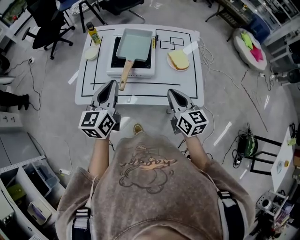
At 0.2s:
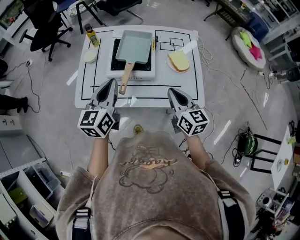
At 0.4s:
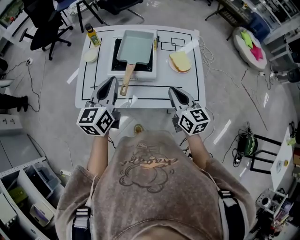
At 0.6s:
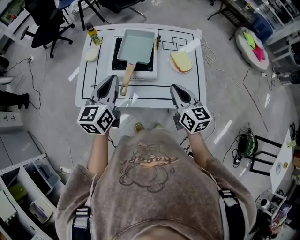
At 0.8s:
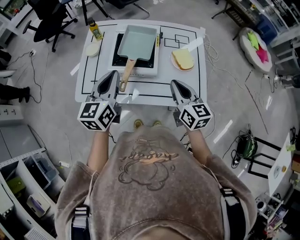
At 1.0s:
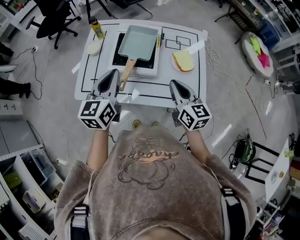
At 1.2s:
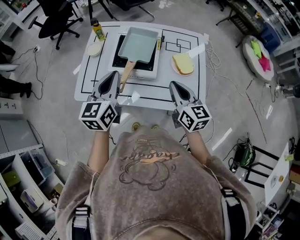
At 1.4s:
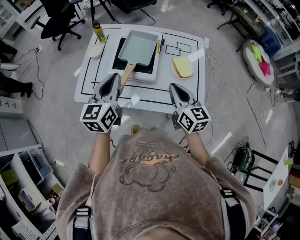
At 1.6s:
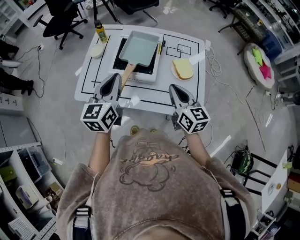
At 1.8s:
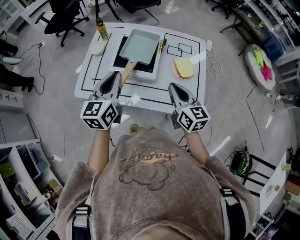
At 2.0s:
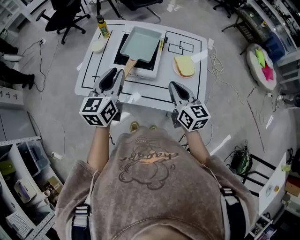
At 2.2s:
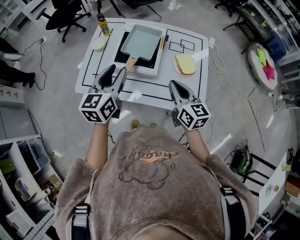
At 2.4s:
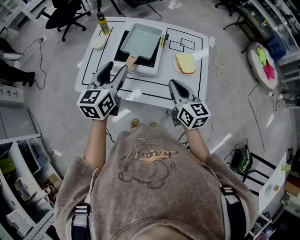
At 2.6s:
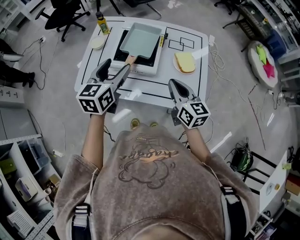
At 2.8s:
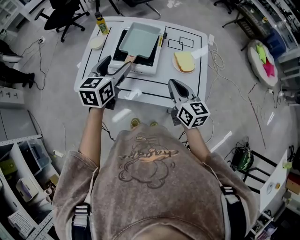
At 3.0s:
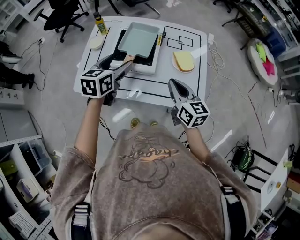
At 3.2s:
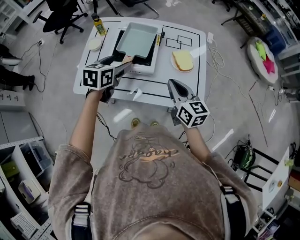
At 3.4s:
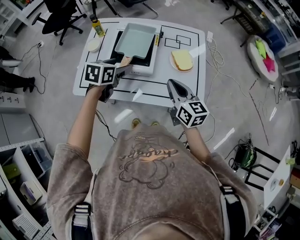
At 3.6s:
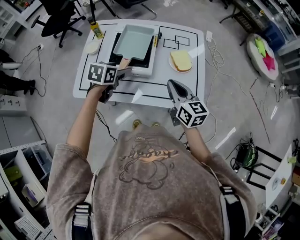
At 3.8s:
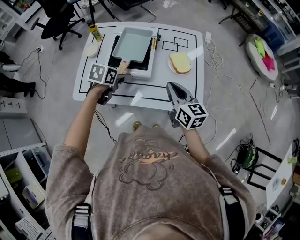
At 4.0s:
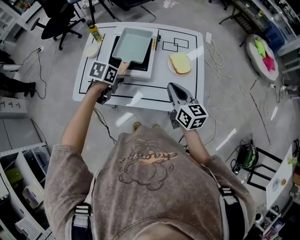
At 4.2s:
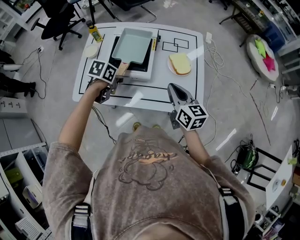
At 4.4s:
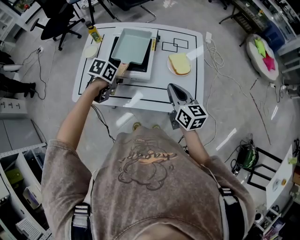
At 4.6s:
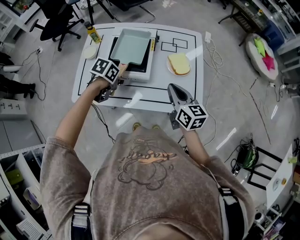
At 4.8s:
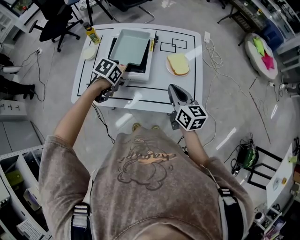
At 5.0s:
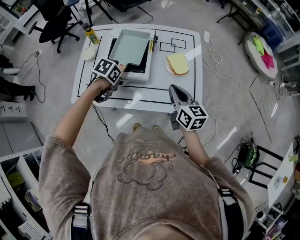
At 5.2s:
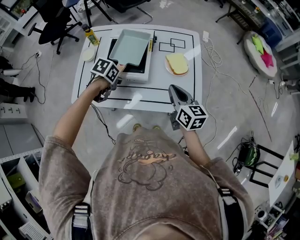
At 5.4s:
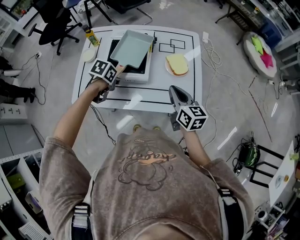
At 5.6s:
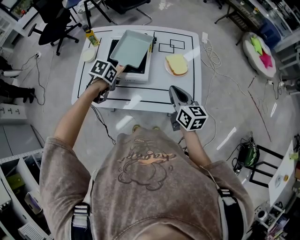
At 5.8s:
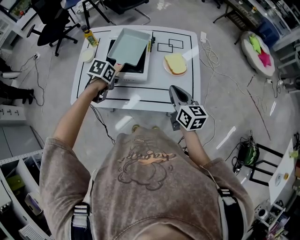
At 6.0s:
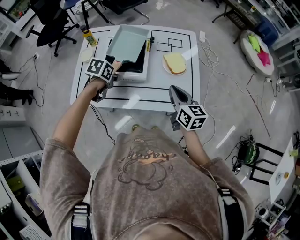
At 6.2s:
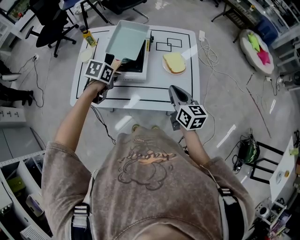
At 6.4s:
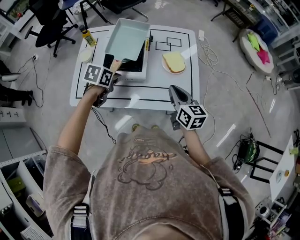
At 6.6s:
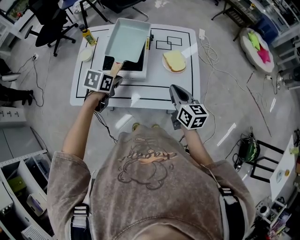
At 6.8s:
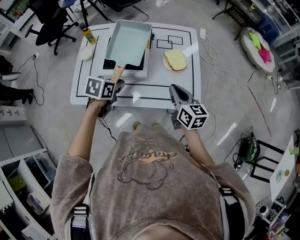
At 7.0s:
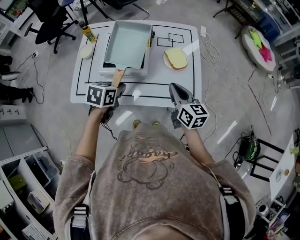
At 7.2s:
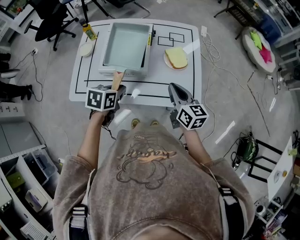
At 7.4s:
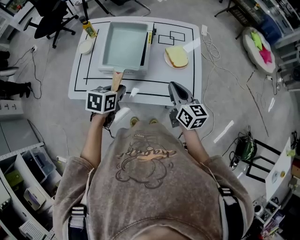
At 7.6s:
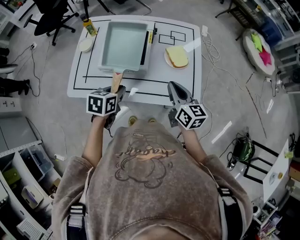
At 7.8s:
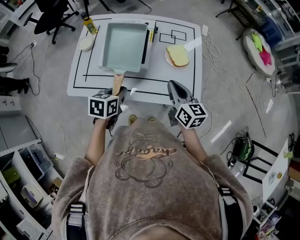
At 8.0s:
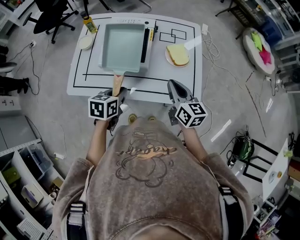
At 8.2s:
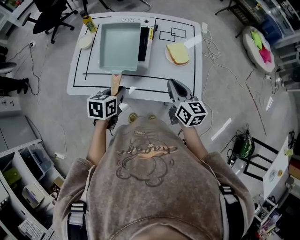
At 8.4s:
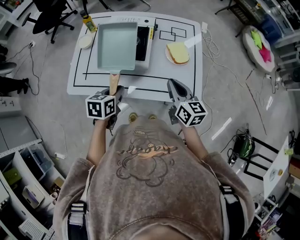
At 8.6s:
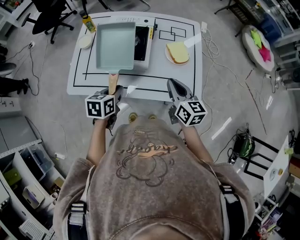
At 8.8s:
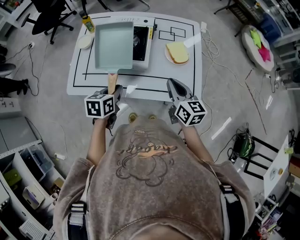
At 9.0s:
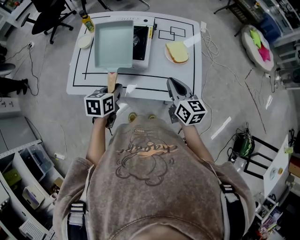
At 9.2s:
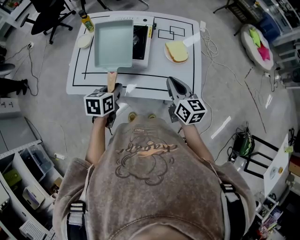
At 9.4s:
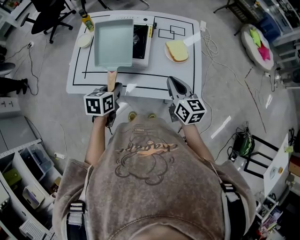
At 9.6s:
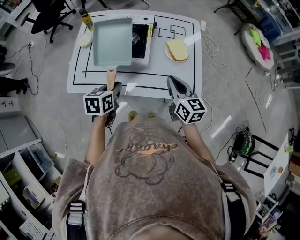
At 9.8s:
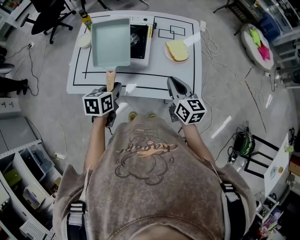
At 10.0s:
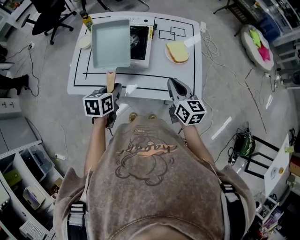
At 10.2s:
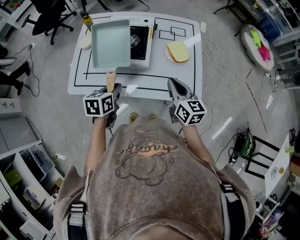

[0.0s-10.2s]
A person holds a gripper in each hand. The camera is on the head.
0.0s to 1.4s: The right gripper moves forward, about 5 cm.
1.4s to 3.0s: The left gripper ends up approximately 5 cm from where it was, turns by some 20 degrees, and opens.
3.0s to 4.4s: The left gripper heads downward, covering roughly 15 cm, and turns by approximately 40 degrees.
4.4s to 5.8s: The left gripper closes up.
5.8s to 7.2s: The left gripper travels backward by roughly 5 cm.
7.2s to 8.8s: The grippers move only a little.
8.8s to 10.2s: Both grippers stay put.

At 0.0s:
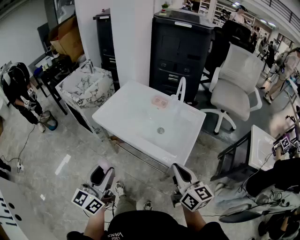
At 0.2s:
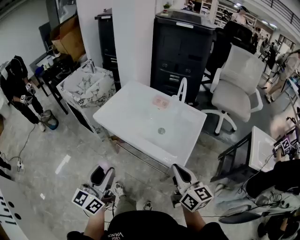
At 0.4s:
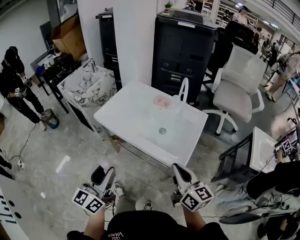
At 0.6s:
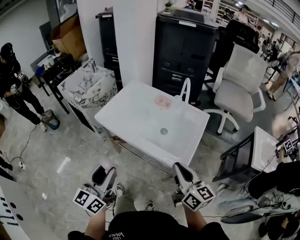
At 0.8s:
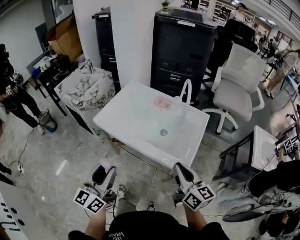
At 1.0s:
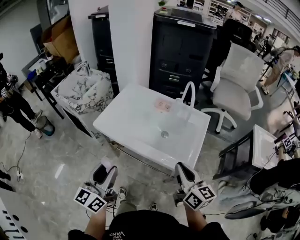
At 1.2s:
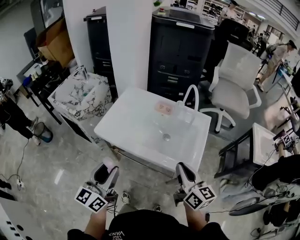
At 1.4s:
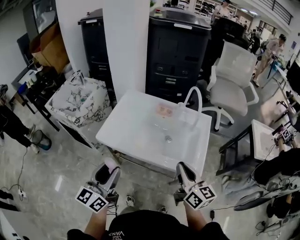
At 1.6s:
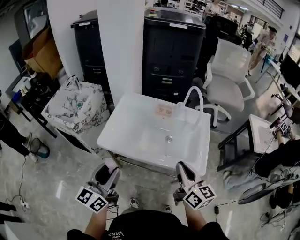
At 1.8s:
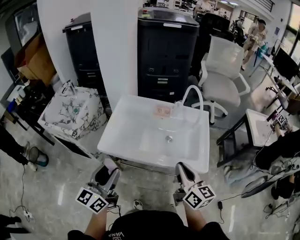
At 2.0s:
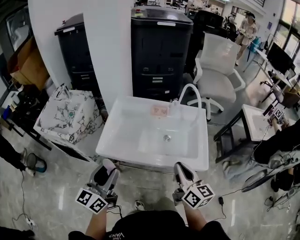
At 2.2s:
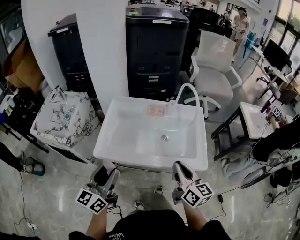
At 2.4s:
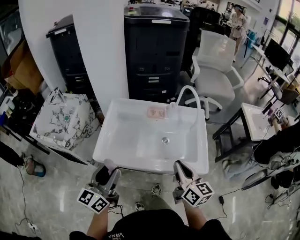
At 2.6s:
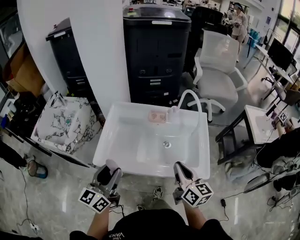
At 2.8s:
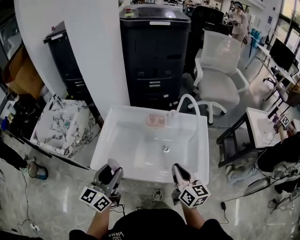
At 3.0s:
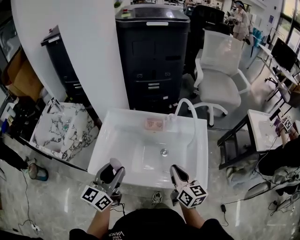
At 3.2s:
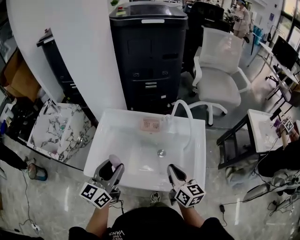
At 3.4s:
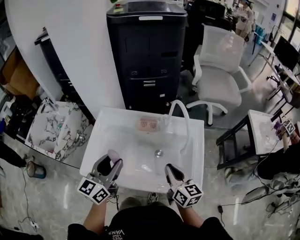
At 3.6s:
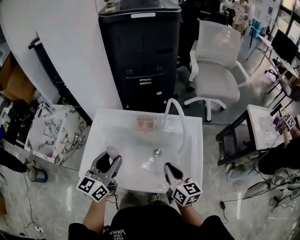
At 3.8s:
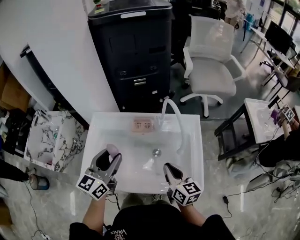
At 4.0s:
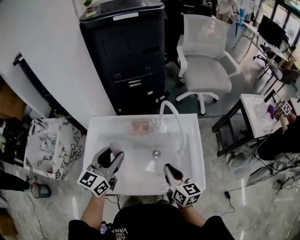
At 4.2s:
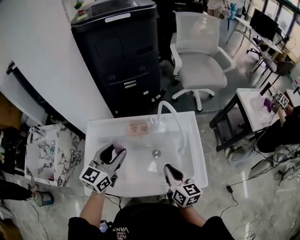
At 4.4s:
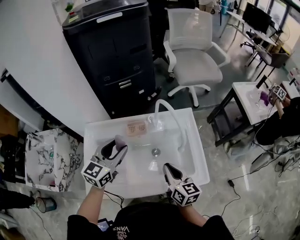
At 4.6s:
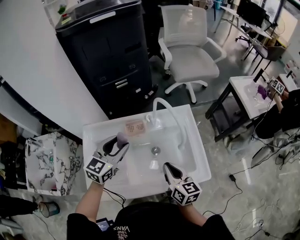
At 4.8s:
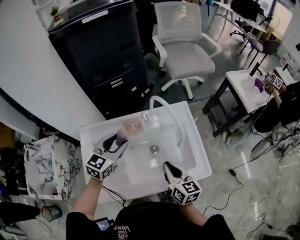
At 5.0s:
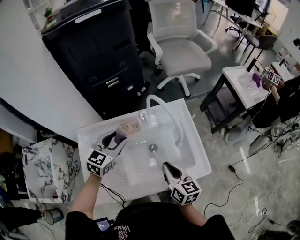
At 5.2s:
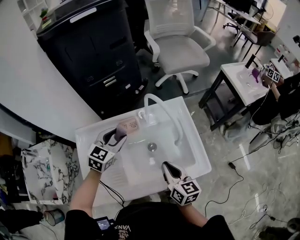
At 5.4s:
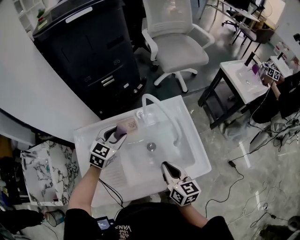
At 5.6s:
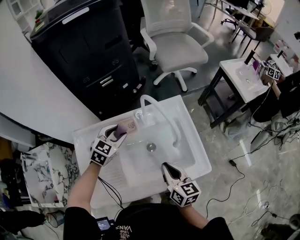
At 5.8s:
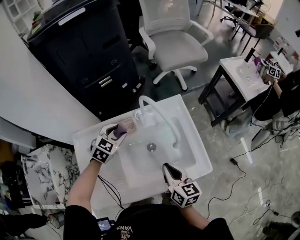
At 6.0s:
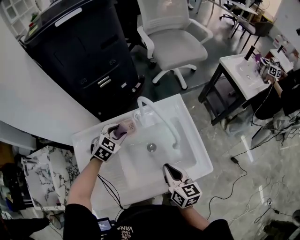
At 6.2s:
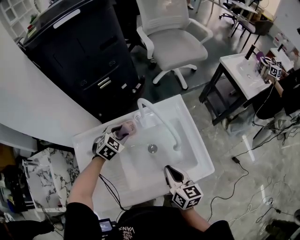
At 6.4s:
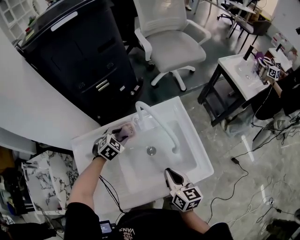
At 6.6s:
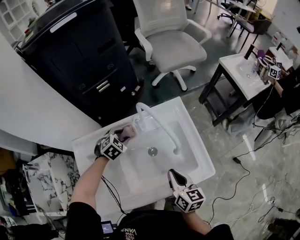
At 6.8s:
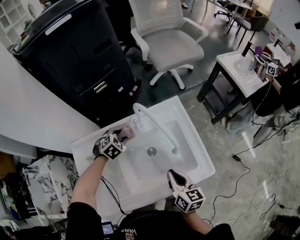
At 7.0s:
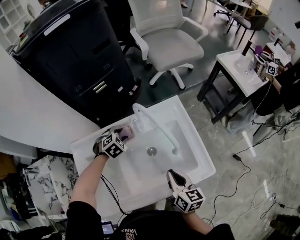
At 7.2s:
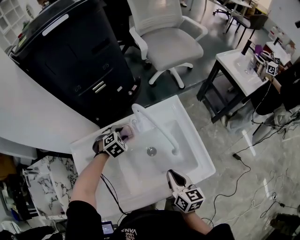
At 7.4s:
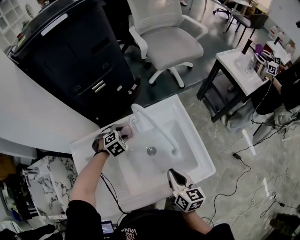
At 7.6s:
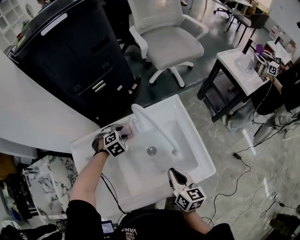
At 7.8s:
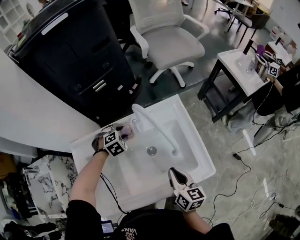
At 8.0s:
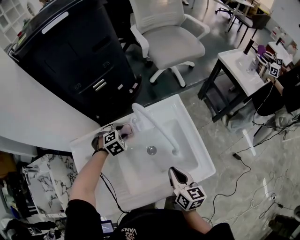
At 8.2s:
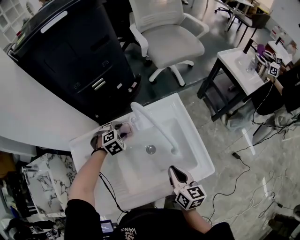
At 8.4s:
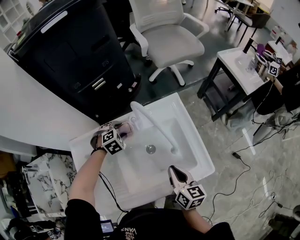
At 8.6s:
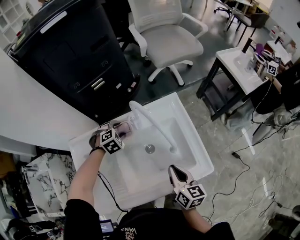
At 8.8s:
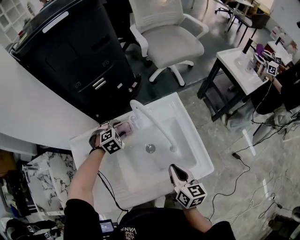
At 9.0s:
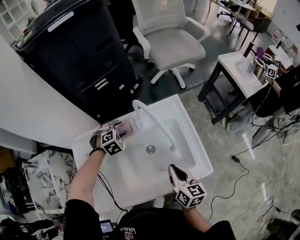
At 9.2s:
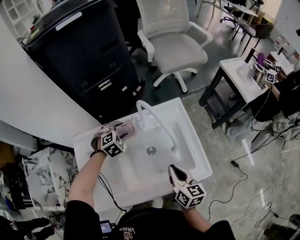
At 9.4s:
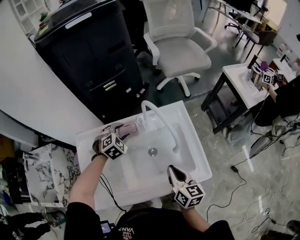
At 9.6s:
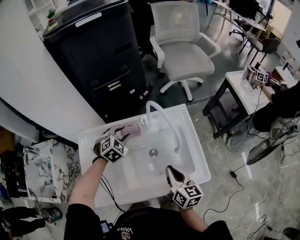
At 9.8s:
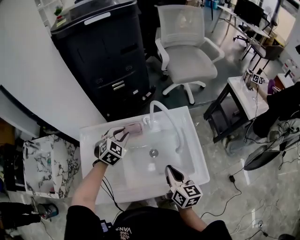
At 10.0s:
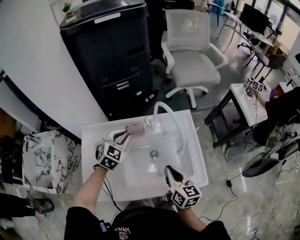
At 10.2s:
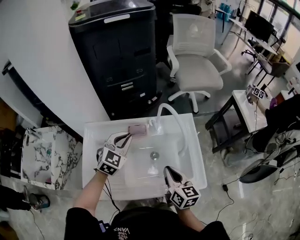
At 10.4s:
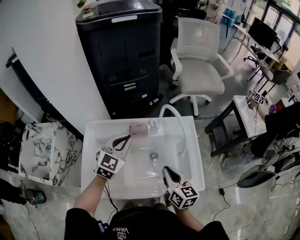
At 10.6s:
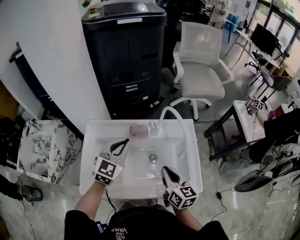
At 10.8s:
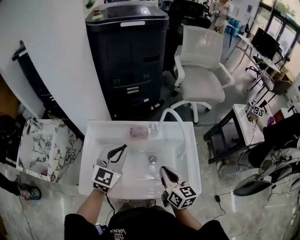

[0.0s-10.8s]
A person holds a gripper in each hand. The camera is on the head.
0.0s to 1.6s: The left gripper shifts about 20 cm forward and to the left; the right gripper goes about 15 cm to the left and forward.
1.6s to 3.0s: The left gripper heads forward, covering approximately 20 cm. Meanwhile the right gripper travels forward and downward by roughly 15 cm.
3.0s to 4.6s: The right gripper shifts by some 5 cm. The left gripper shifts approximately 20 cm forward, and rotates approximately 40 degrees.
4.6s to 6.2s: The left gripper goes roughly 20 cm downward and forward, and tilts its fingers some 30 degrees downward.
6.2s to 7.8s: The left gripper shifts roughly 5 cm downward, and changes its angle by roughly 20 degrees.
7.8s to 9.2s: The left gripper shifts by some 5 cm.
9.2s to 10.8s: The left gripper moves upward and backward, some 25 cm, tips its fingers upward by approximately 40 degrees, and closes; the right gripper goes some 10 cm upward and to the left, and swivels about 20 degrees.

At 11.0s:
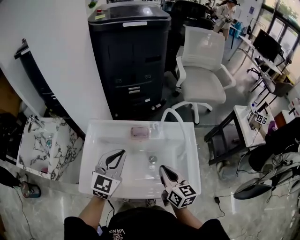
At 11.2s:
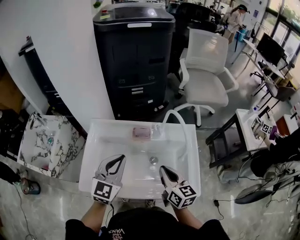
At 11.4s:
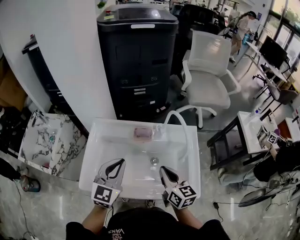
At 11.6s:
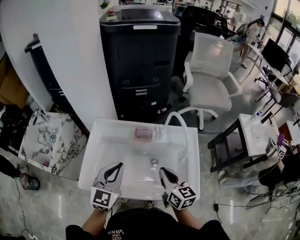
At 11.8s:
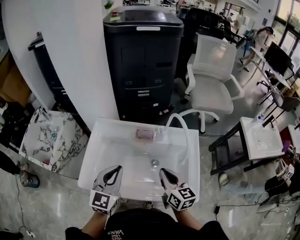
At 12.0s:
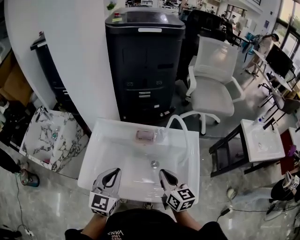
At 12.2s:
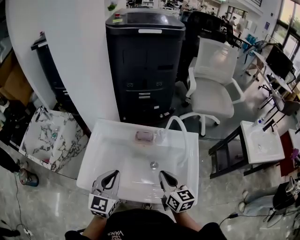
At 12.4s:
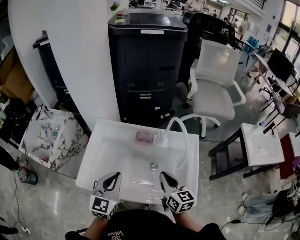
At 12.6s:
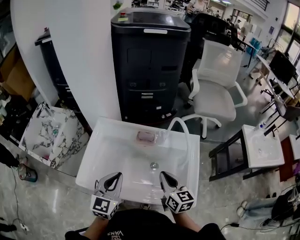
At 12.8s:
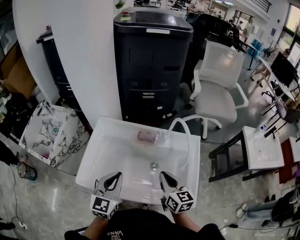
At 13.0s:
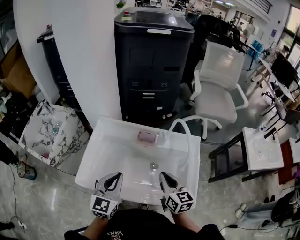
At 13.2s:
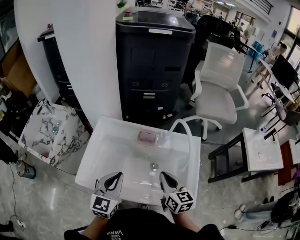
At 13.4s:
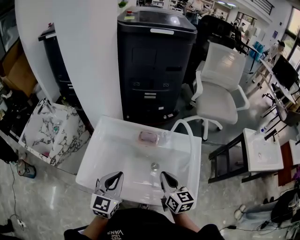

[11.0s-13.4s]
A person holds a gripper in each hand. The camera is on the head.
11.0s to 12.2s: The left gripper moves backward, roughly 10 cm.
12.2s to 13.4s: There are only small adjustments of the grippers.
